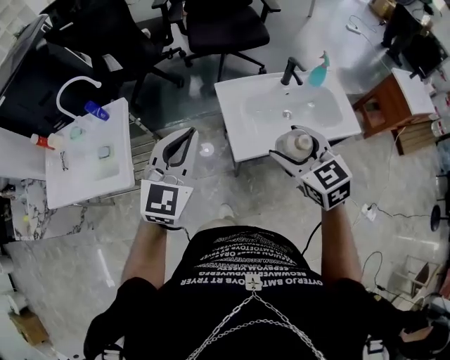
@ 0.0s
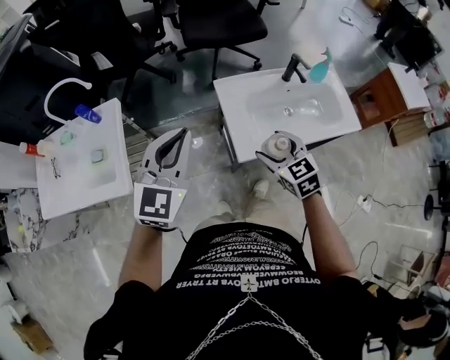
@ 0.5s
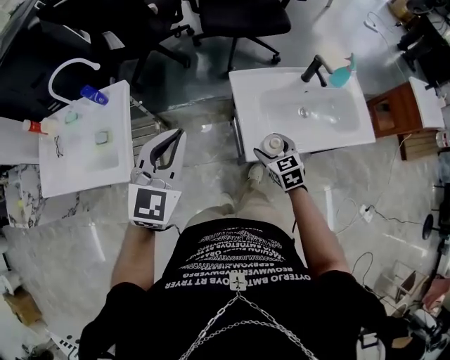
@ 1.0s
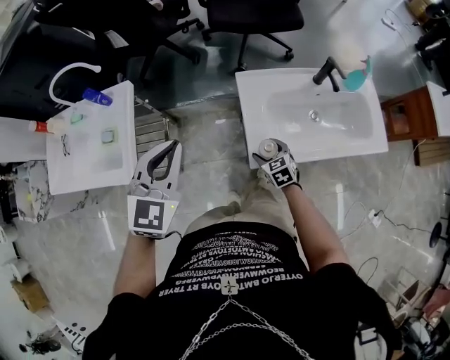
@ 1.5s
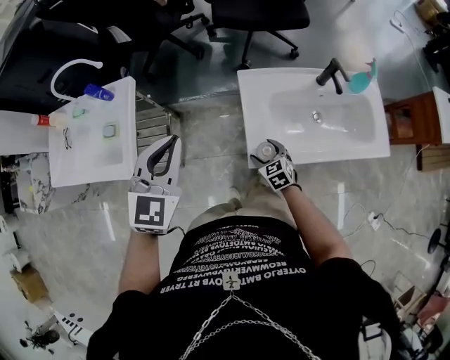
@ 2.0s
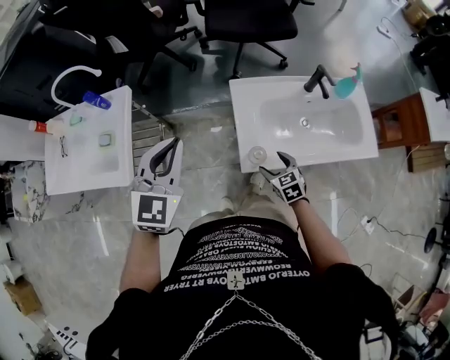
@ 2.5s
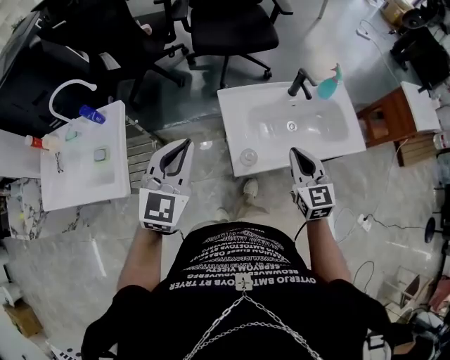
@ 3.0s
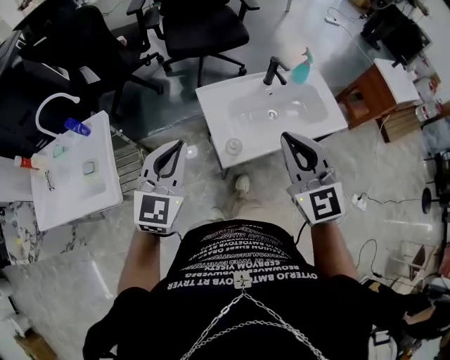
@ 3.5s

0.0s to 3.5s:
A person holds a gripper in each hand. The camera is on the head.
0.0s to 2.0s: The left gripper heads forward, downward and to the left, covering some 15 cm. The right gripper heads downward, covering approximately 35 cm.
2.0s to 3.5s: The left gripper goes roughly 10 cm backward and to the right; the right gripper goes about 40 cm upward, tips its fingers upward by approximately 40 degrees, and closes its fingers.

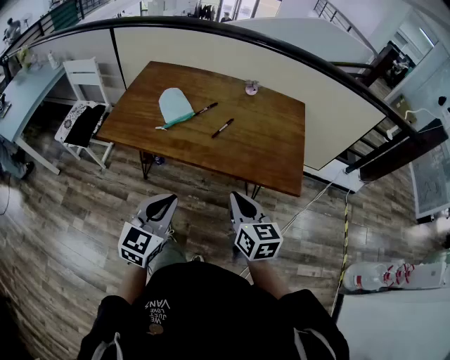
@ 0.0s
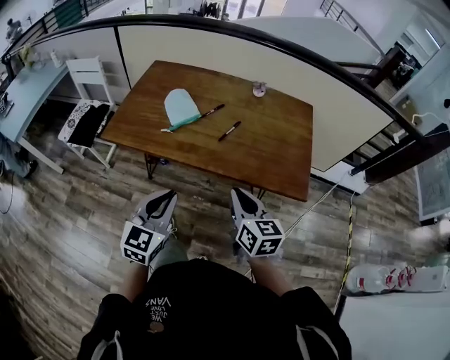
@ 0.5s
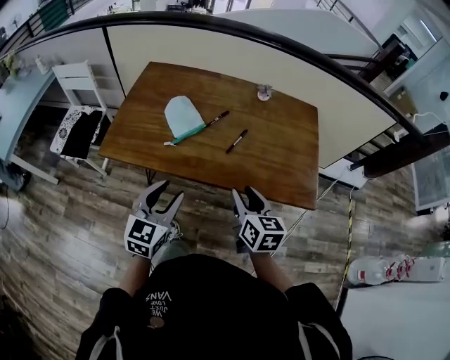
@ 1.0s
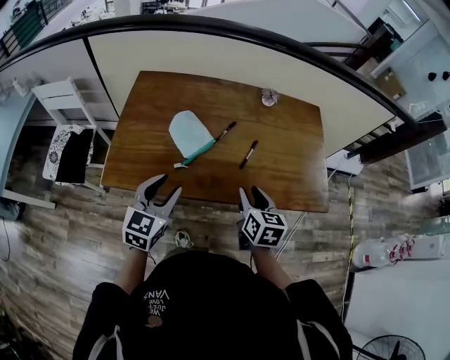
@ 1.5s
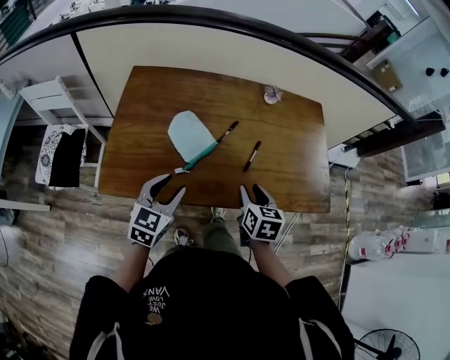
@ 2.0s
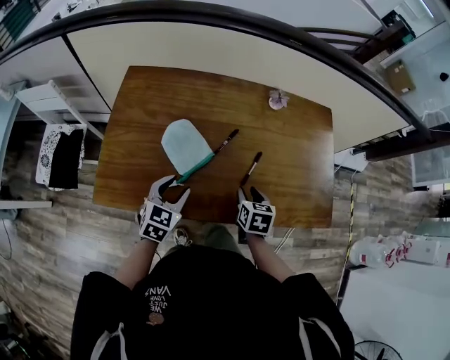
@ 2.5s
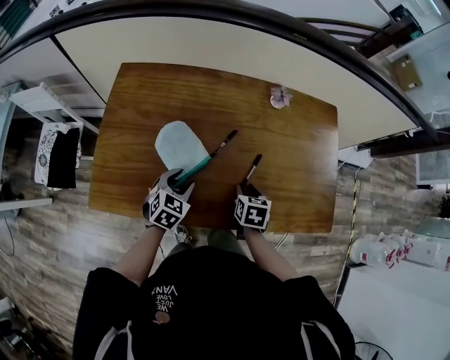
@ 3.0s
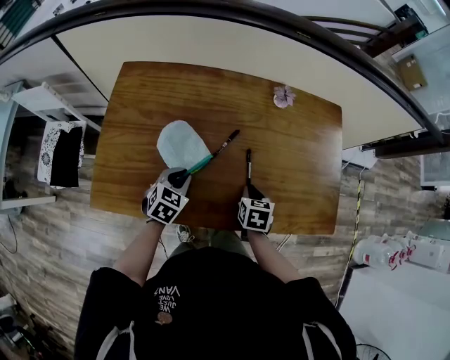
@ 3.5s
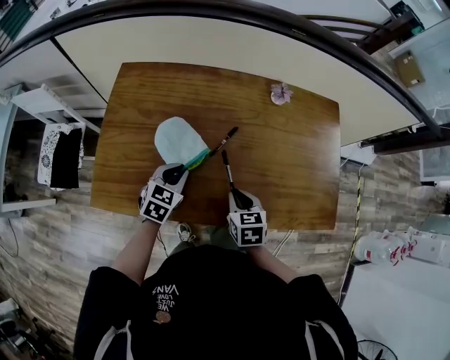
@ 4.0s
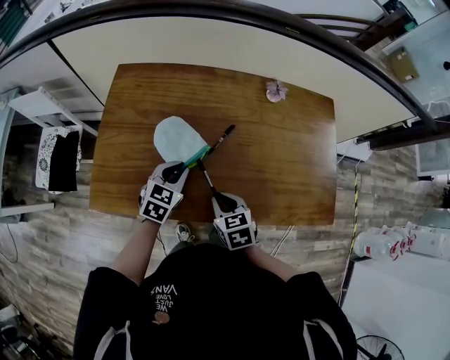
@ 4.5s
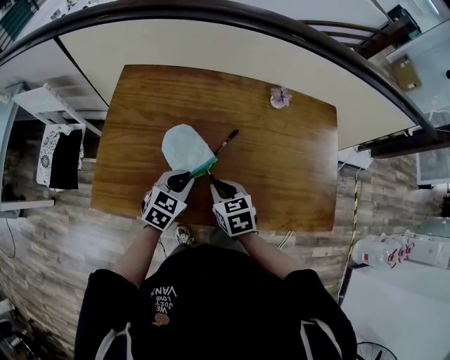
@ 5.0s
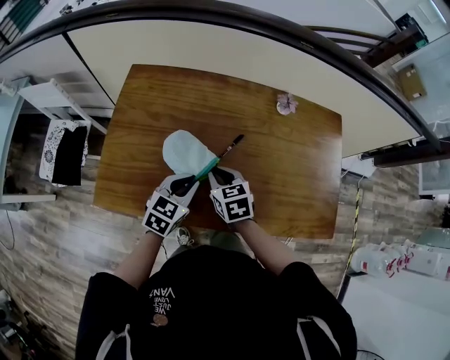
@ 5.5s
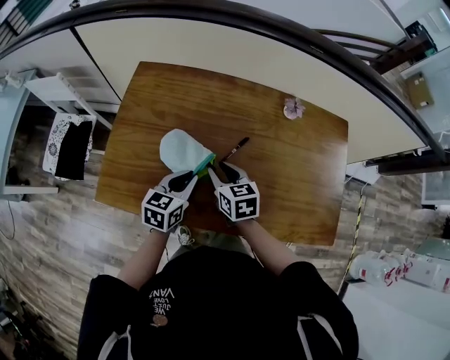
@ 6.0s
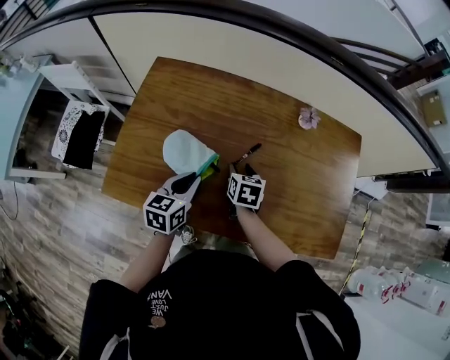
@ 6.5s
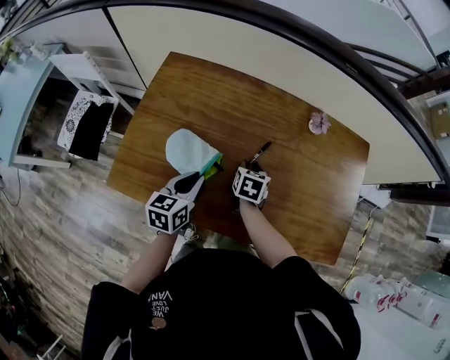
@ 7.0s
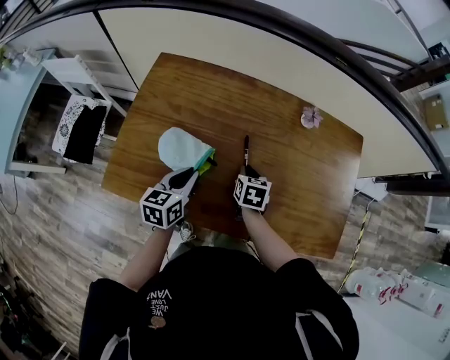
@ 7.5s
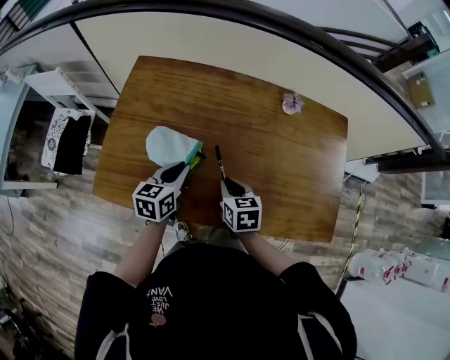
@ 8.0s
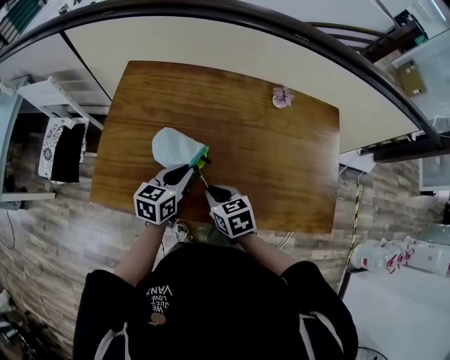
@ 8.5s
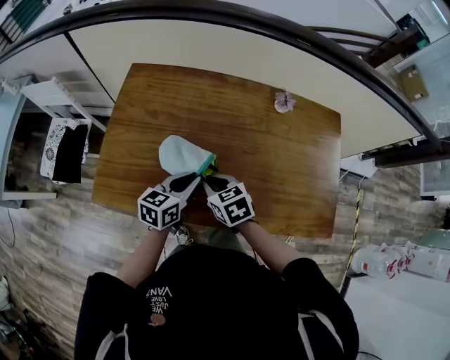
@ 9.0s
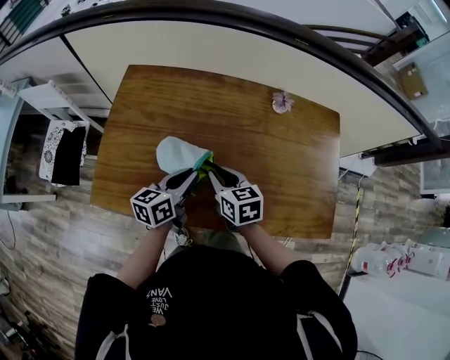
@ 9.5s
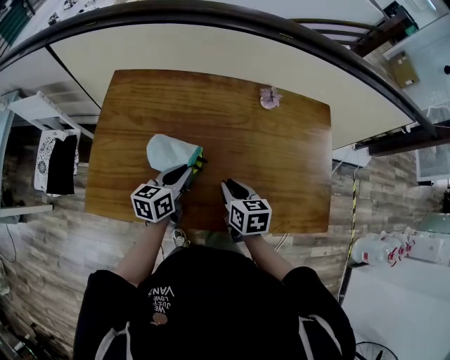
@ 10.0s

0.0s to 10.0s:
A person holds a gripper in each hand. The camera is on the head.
0.0s to 2.0s: The right gripper moves forward, to the left and downward, approximately 25 cm, changes its angle by approximately 30 degrees, and opens. Meanwhile the left gripper travels forward and to the left by approximately 35 cm, and opens its fingers.
2.0s to 4.0s: The right gripper shifts roughly 10 cm downward and forward, and closes; the left gripper moves forward and downward, roughly 15 cm, and closes up.
4.0s to 6.0s: The left gripper swivels some 30 degrees. Meanwhile the right gripper moves to the left and forward, roughly 15 cm.
8.0s to 10.0s: The two grippers go approximately 5 cm to the right.

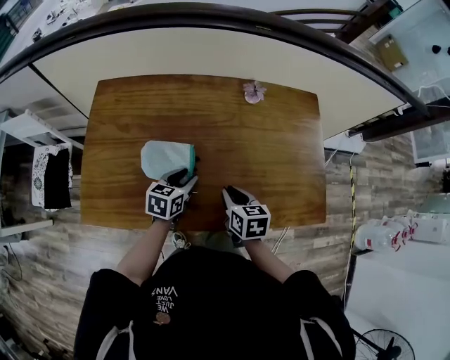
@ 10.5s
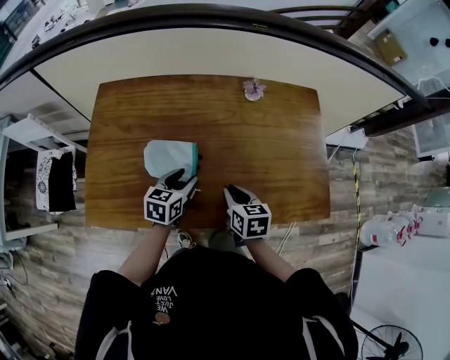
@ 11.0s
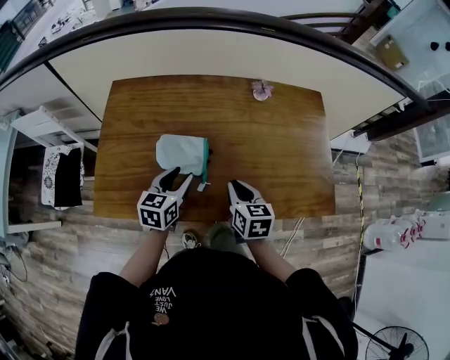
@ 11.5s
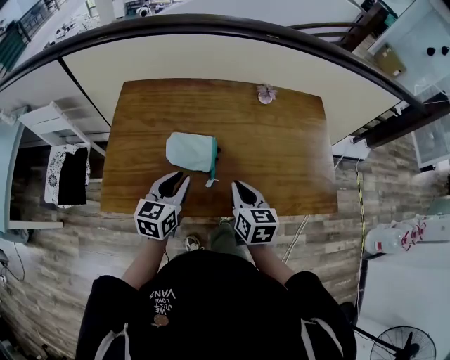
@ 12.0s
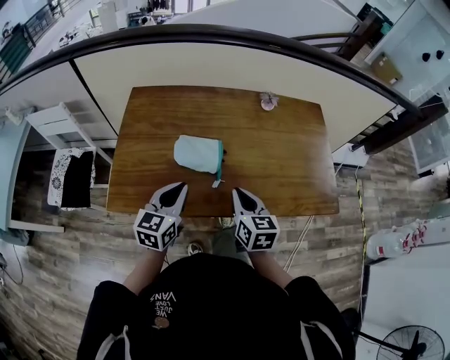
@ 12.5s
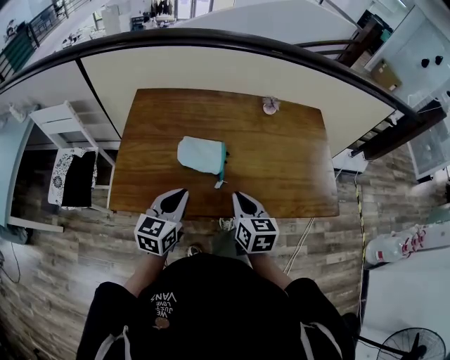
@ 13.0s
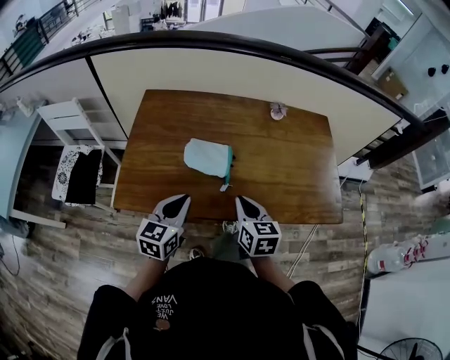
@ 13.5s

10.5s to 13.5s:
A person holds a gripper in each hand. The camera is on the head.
10.5s to 12.0s: The right gripper moves upward and backward, about 10 cm, while the left gripper is displaced upward, to the left and backward by some 15 cm, and changes its angle by approximately 20 degrees.
12.0s to 13.5s: The left gripper moves backward, roughly 10 cm. The right gripper changes place by some 5 cm.

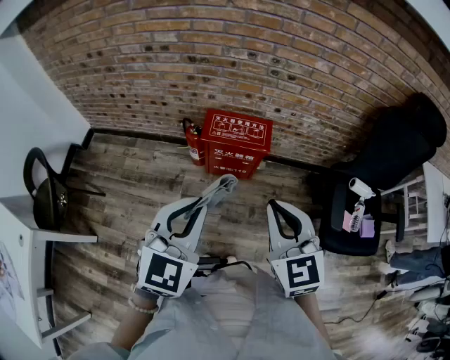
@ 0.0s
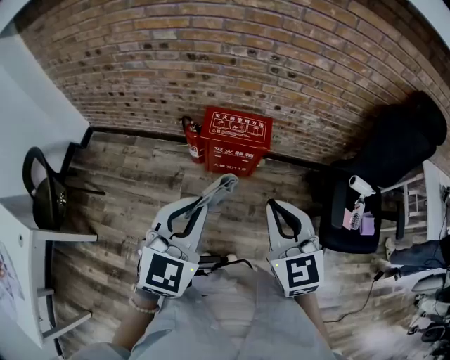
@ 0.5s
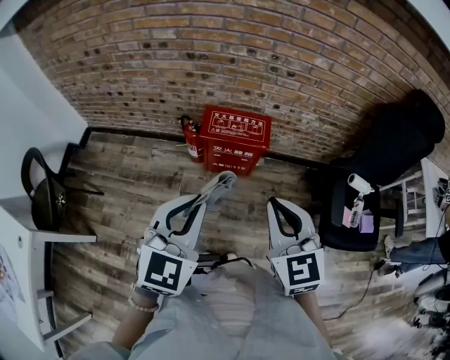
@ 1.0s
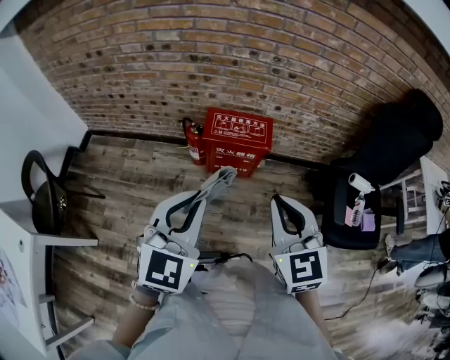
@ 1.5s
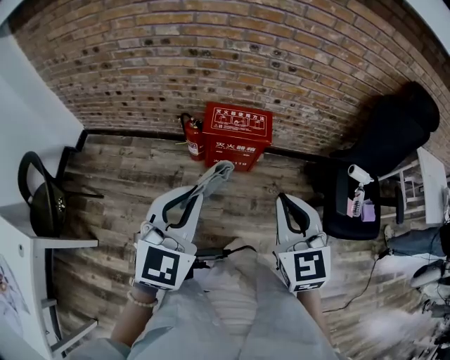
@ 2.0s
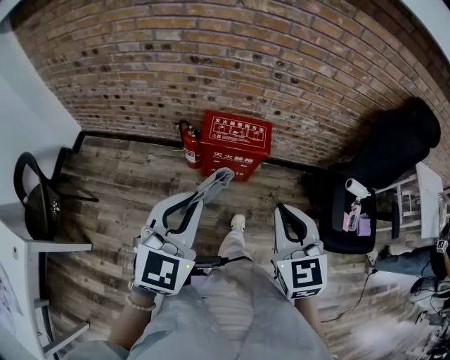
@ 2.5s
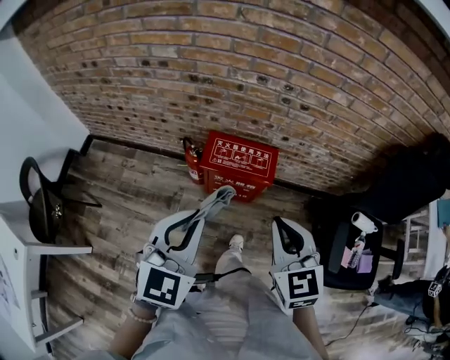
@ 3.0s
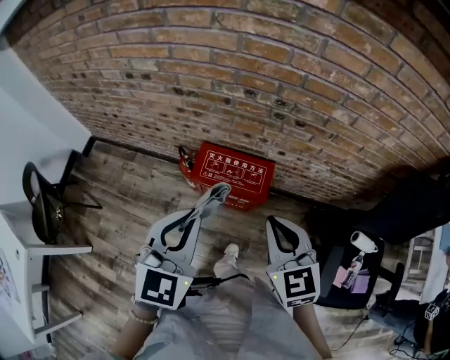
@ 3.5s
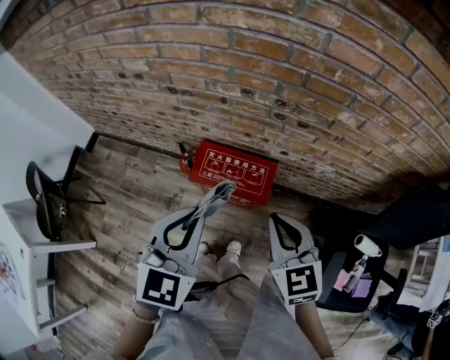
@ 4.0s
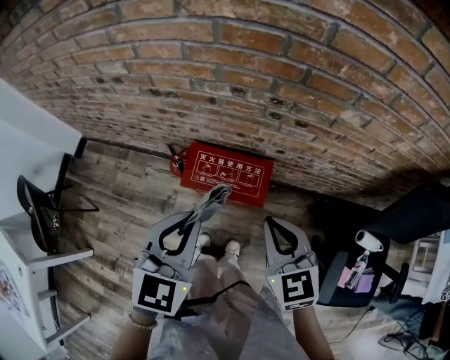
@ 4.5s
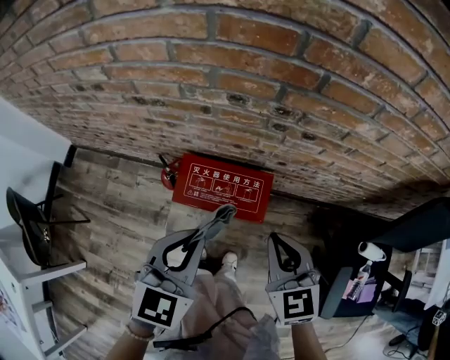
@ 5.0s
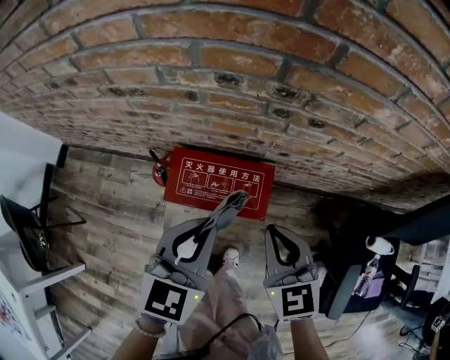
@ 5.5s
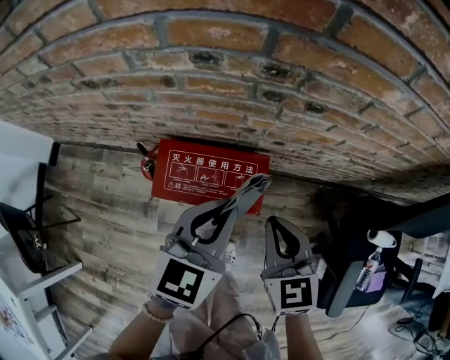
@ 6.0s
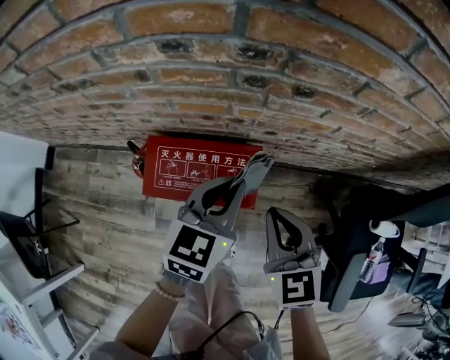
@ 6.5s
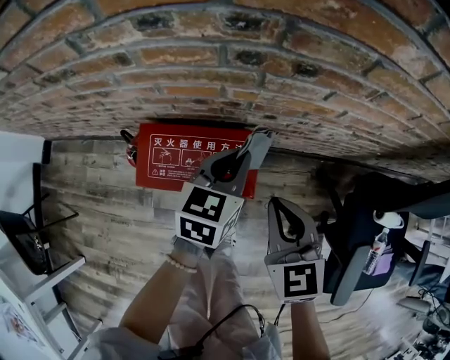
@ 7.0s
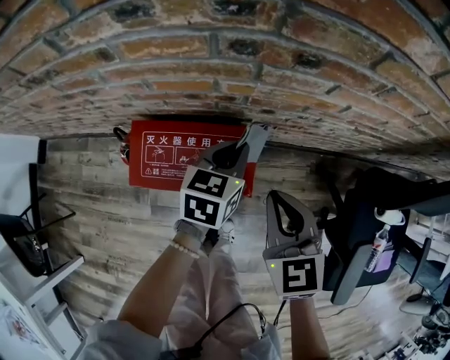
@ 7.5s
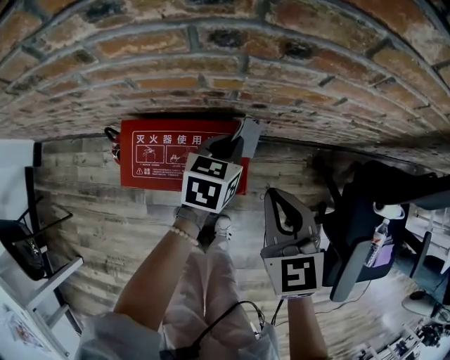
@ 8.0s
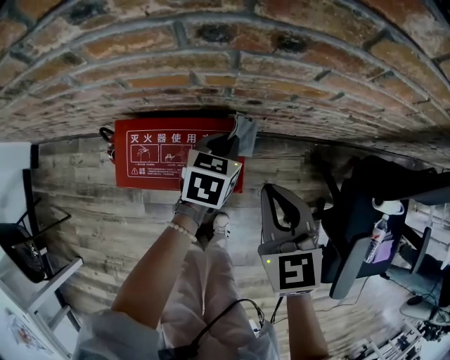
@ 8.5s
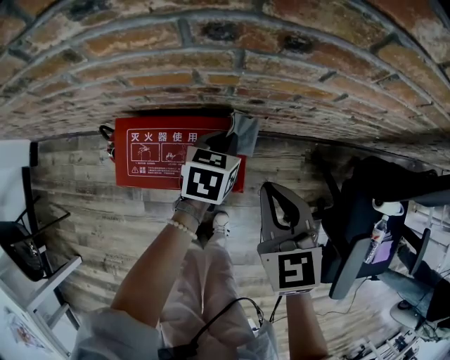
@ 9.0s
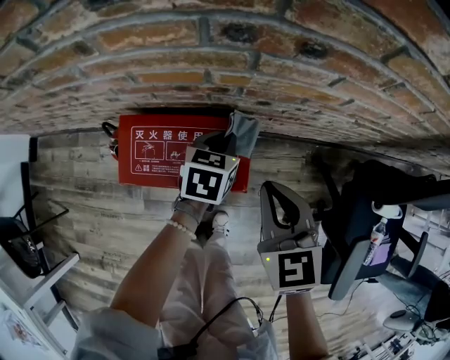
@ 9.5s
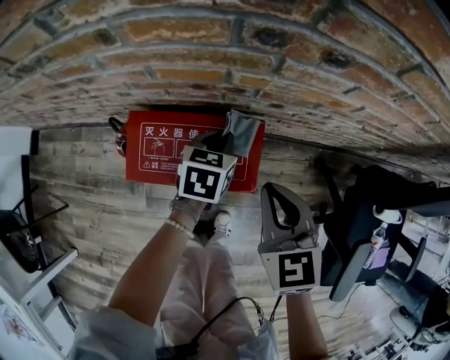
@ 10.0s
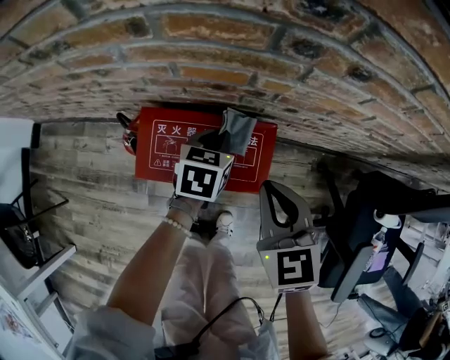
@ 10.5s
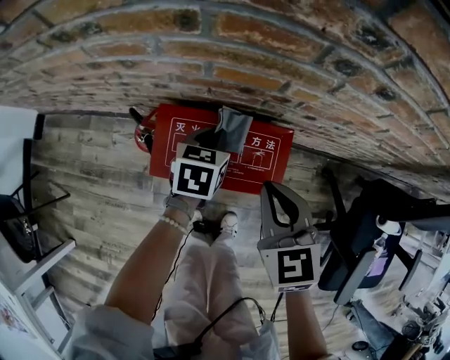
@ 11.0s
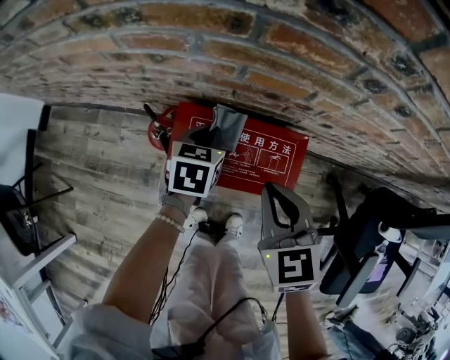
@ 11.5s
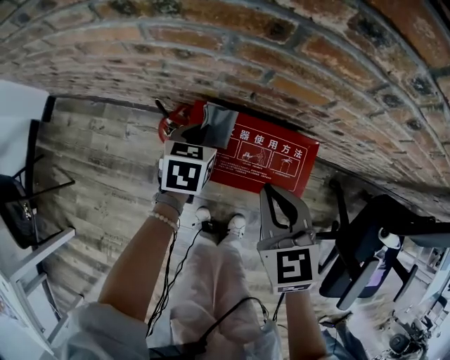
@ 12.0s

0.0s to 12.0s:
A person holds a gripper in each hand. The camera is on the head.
0.0s to 2.0s: The left gripper travels to the left by some 5 cm.
2.0s to 4.0s: The right gripper is displaced forward by approximately 30 cm, while the left gripper shifts approximately 30 cm forward and to the right.
4.0s to 6.0s: The right gripper shifts roughly 20 cm downward and forward. Meanwhile the left gripper is displaced downward, forward and to the right by roughly 25 cm, and changes its angle by roughly 20 degrees.
6.0s to 8.0s: The right gripper heads downward, covering approximately 5 cm. The left gripper is displaced downward and forward by some 25 cm, and turns by approximately 20 degrees.
8.0s to 10.0s: The left gripper travels to the left by approximately 5 cm.
10.0s to 12.0s: Both grippers move to the left, roughly 20 cm.
